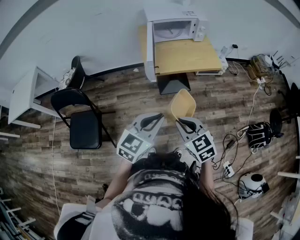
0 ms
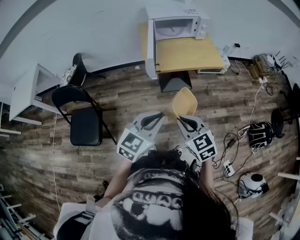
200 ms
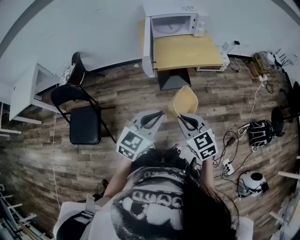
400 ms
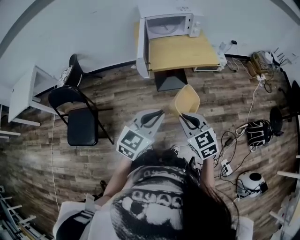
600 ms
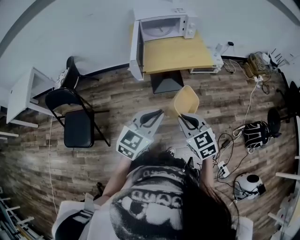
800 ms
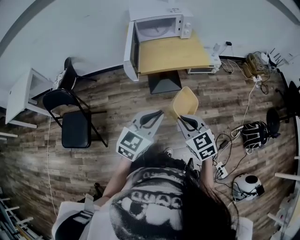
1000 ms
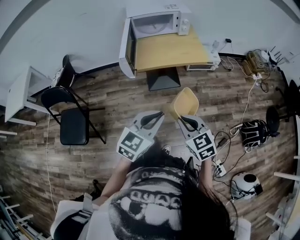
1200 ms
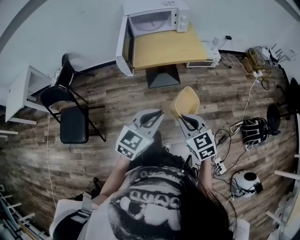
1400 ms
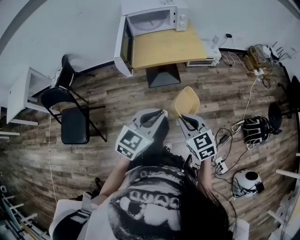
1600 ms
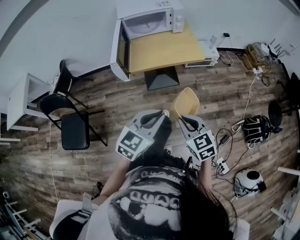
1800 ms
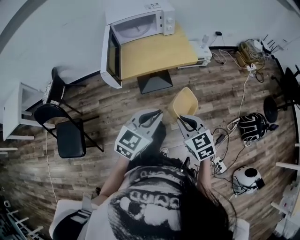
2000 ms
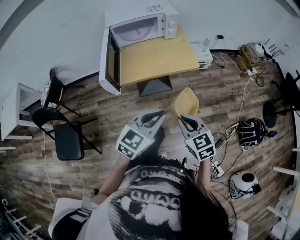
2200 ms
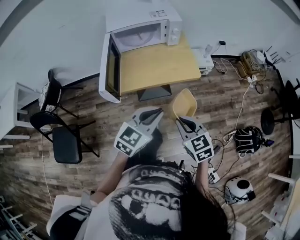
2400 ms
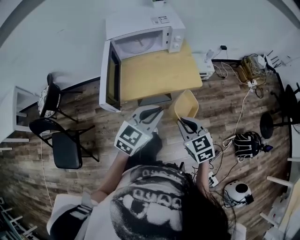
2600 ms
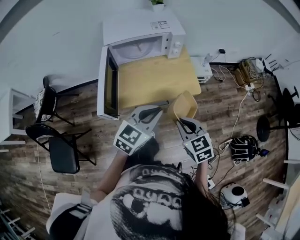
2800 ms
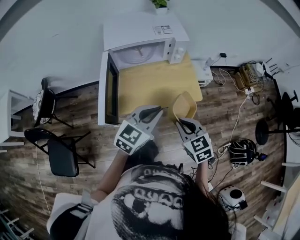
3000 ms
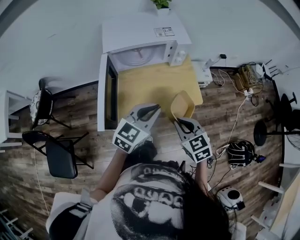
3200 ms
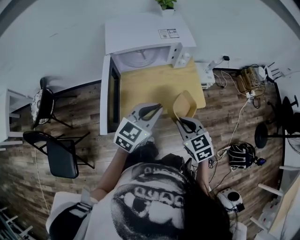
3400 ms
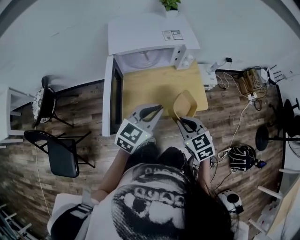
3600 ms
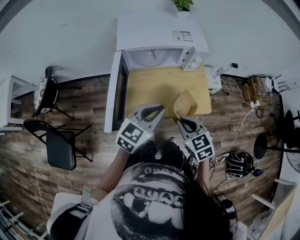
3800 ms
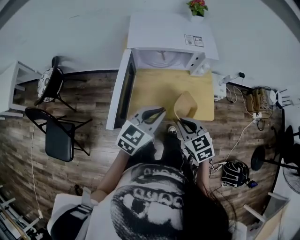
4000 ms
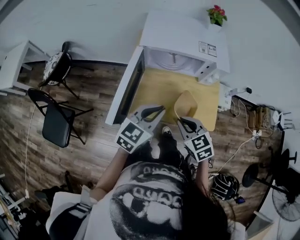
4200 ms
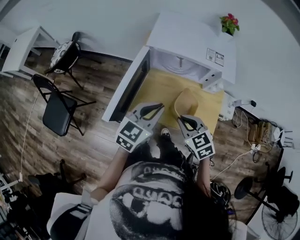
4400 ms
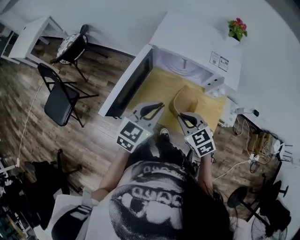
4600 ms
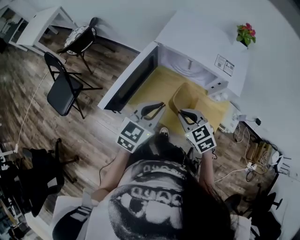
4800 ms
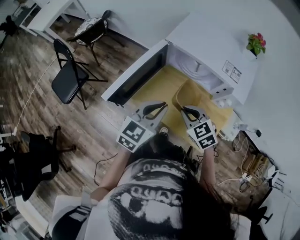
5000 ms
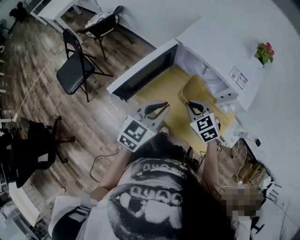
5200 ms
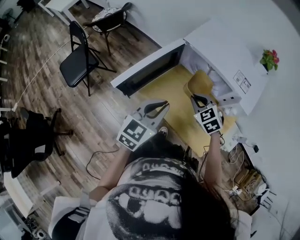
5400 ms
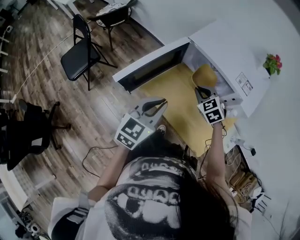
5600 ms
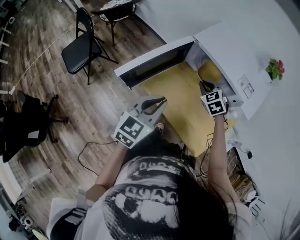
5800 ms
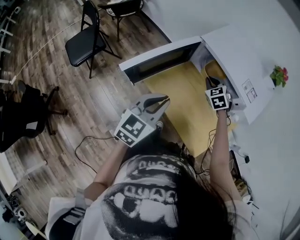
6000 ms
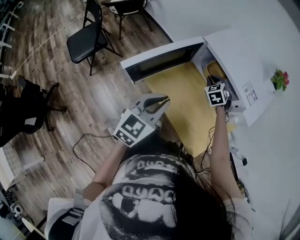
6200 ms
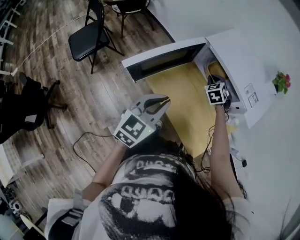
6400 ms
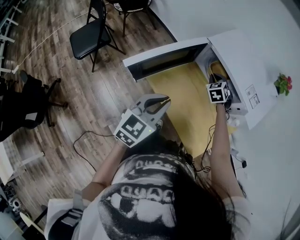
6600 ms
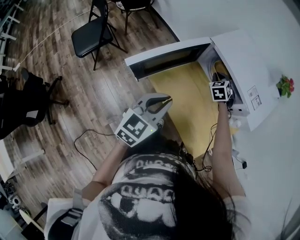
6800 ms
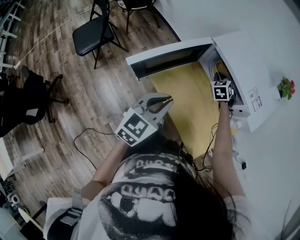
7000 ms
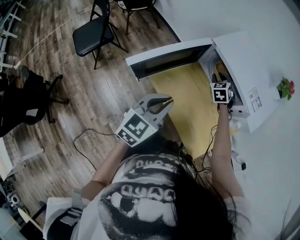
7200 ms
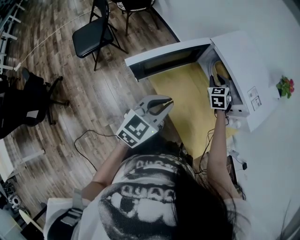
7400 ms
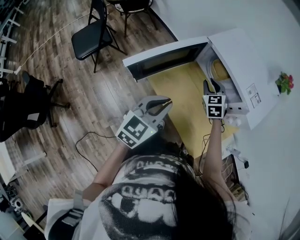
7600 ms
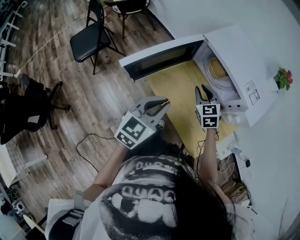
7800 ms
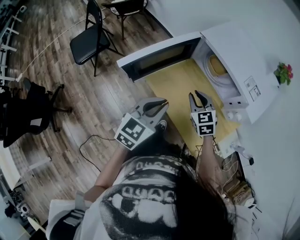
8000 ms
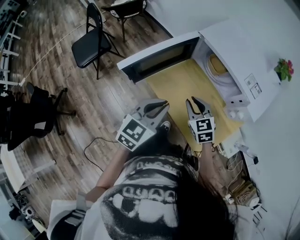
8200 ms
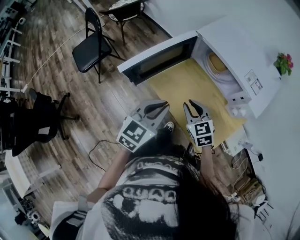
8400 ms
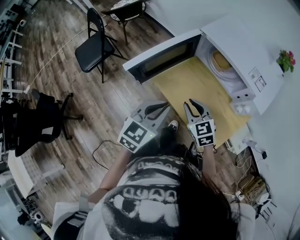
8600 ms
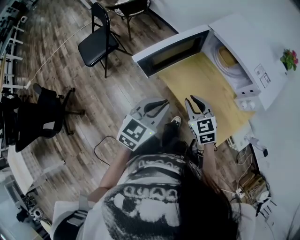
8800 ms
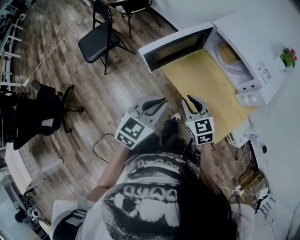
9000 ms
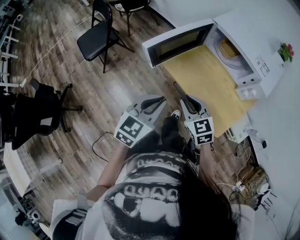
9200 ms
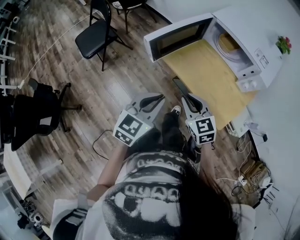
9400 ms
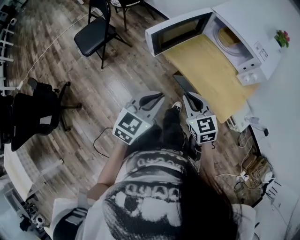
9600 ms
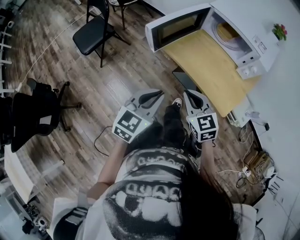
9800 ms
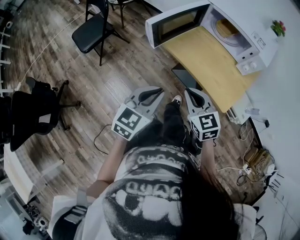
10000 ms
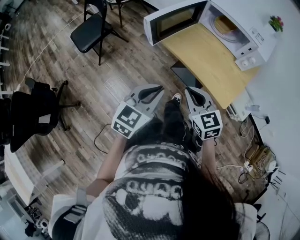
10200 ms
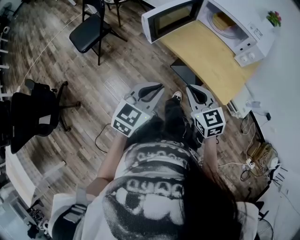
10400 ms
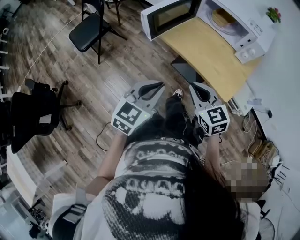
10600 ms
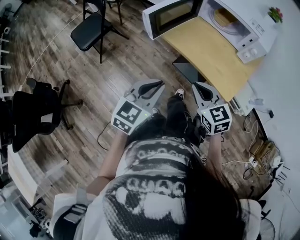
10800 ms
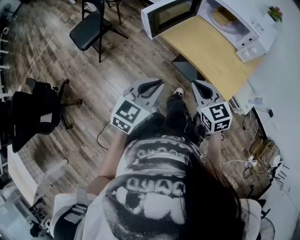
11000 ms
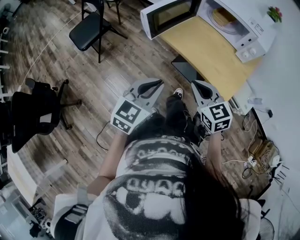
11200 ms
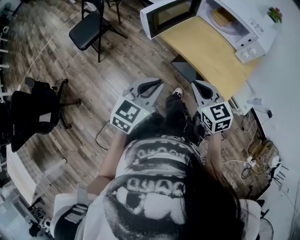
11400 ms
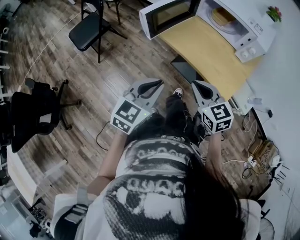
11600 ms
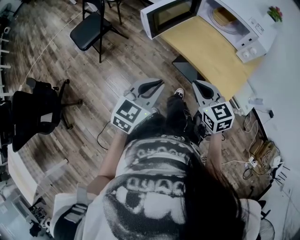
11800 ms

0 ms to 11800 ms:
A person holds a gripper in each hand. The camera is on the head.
0 ms to 1400 ms: The two grippers go approximately 15 cm to the right.
1400 ms to 3000 ms: Both grippers travel together forward, approximately 35 cm.
3000 ms to 4400 ms: The right gripper changes place by roughly 15 cm, and rotates about 30 degrees. Meanwhile the left gripper shifts by about 15 cm, and turns by approximately 30 degrees.
4400 ms to 6000 ms: The left gripper shifts by about 5 cm, and changes its angle by some 30 degrees. Meanwhile the right gripper shifts about 20 cm forward, and changes its angle by roughly 30 degrees.
7400 ms to 8800 ms: The left gripper heads backward, covering about 5 cm; the right gripper goes some 25 cm backward and to the left, and swivels some 30 degrees.
8800 ms to 10400 ms: The grippers both shift backward by roughly 20 cm.
10400 ms to 11800 ms: The grippers make only small movements.

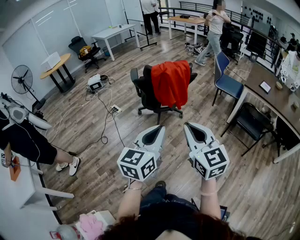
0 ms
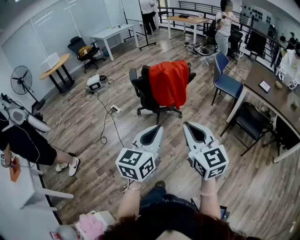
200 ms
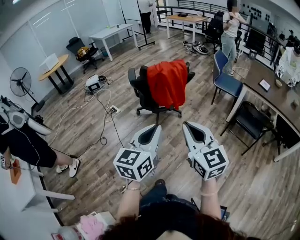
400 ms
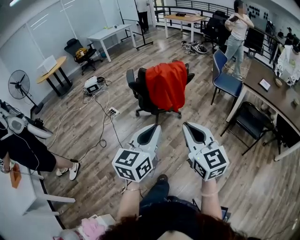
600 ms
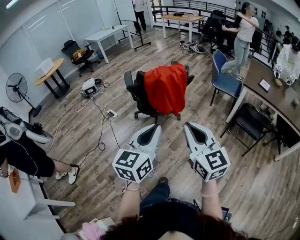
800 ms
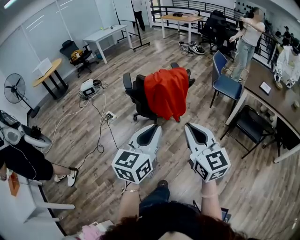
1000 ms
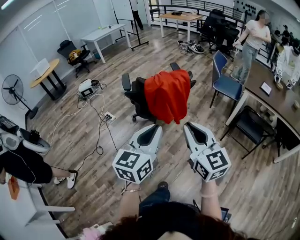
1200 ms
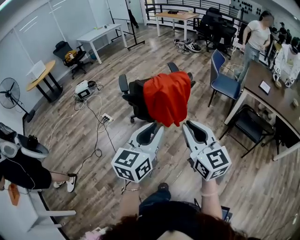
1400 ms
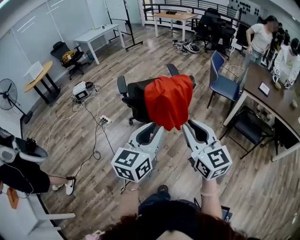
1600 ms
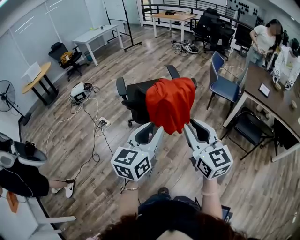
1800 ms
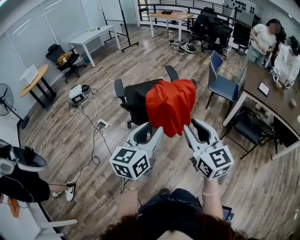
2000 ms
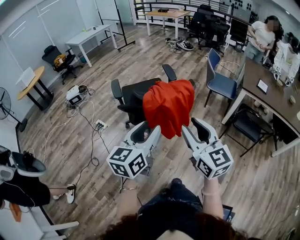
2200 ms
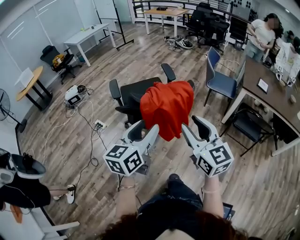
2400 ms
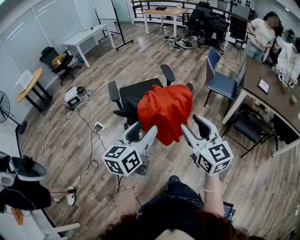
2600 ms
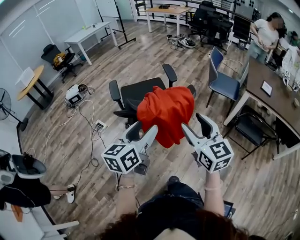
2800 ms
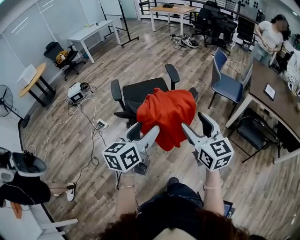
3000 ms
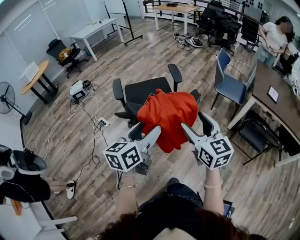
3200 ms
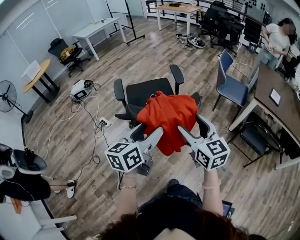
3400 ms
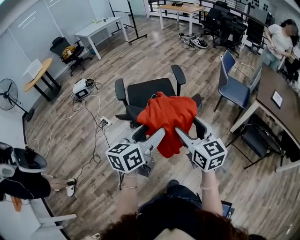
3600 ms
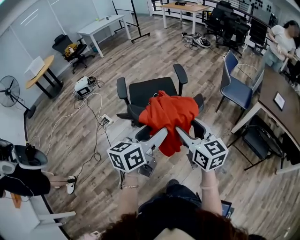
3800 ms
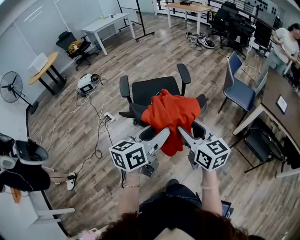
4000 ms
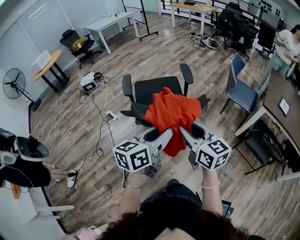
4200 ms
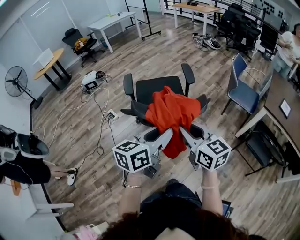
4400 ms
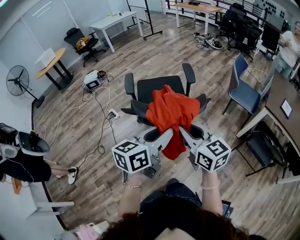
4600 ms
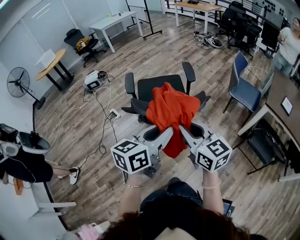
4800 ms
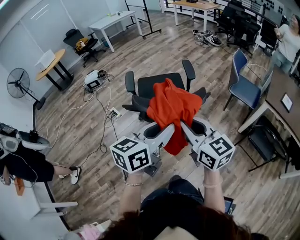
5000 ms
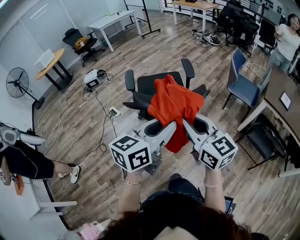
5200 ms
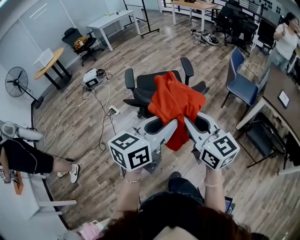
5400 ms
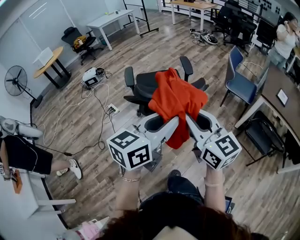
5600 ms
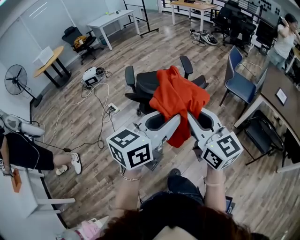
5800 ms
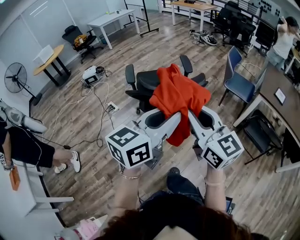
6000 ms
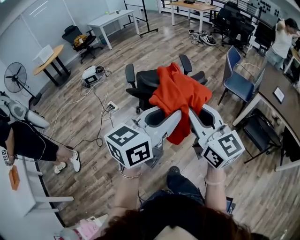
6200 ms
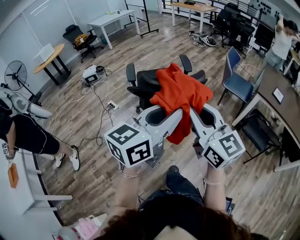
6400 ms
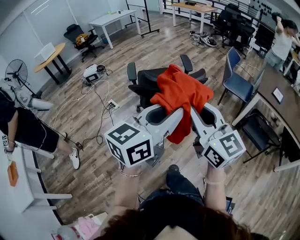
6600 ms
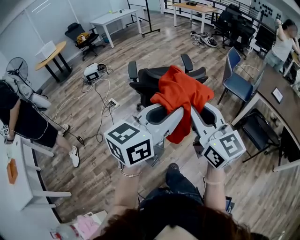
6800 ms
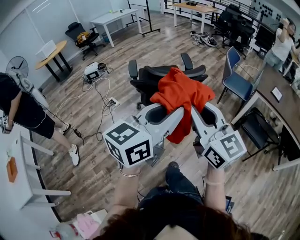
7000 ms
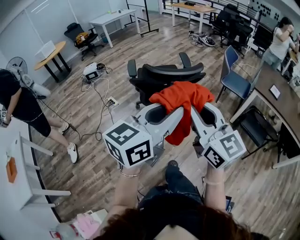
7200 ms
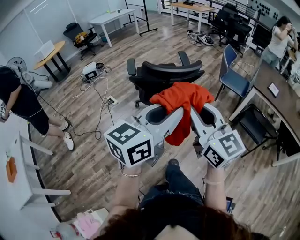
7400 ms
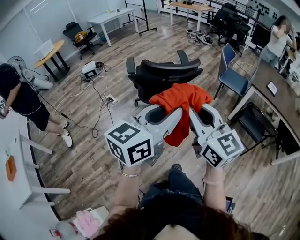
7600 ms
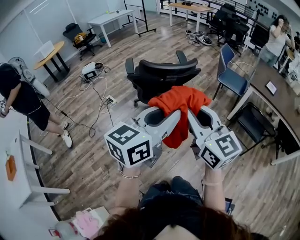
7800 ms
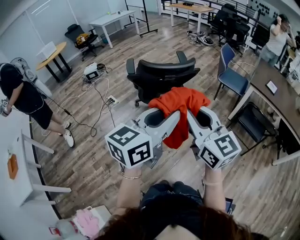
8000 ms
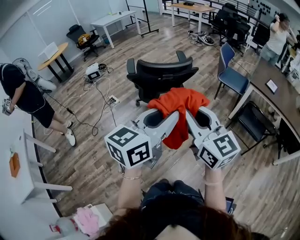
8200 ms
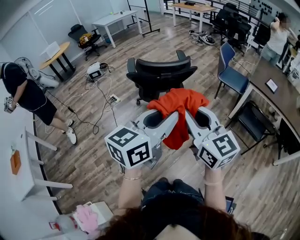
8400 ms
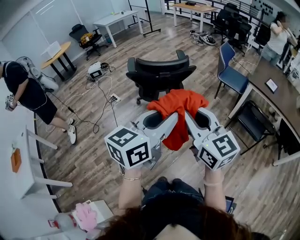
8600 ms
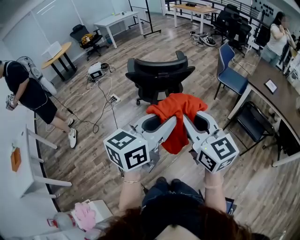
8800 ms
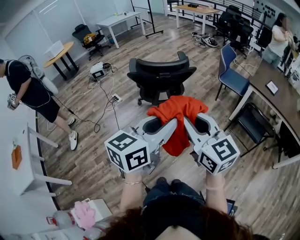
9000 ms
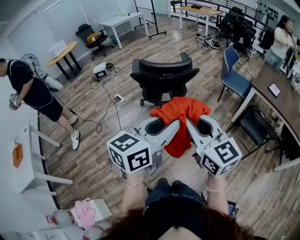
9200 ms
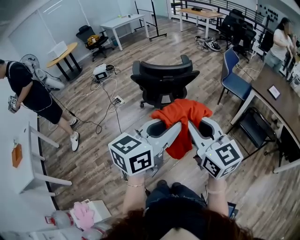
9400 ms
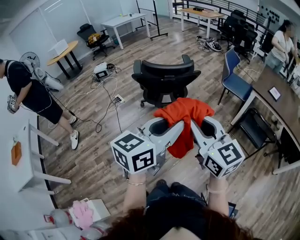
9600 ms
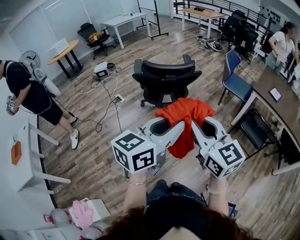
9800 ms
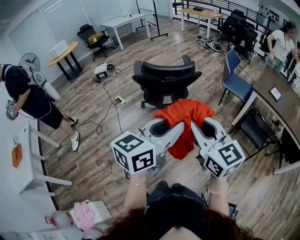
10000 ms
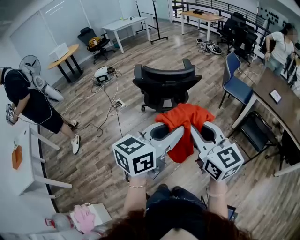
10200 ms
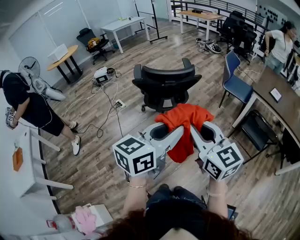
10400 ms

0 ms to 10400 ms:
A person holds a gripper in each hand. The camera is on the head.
0 ms to 1400 ms: The grippers both shift forward by approximately 15 cm.
1400 ms to 3000 ms: Both grippers move forward, roughly 20 cm. The left gripper opens, while the right gripper opens its fingers.
3000 ms to 4400 ms: The right gripper shifts by roughly 5 cm, rotates about 20 degrees, and closes. Meanwhile the left gripper goes approximately 5 cm to the right, and closes.
4400 ms to 6000 ms: Both grippers move backward and upward, roughly 15 cm.
6000 ms to 7400 ms: Both grippers travel together backward, approximately 10 cm.
7400 ms to 9000 ms: The two grippers go some 10 cm backward and to the right.
9000 ms to 10400 ms: Both grippers stay put.

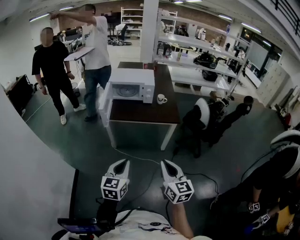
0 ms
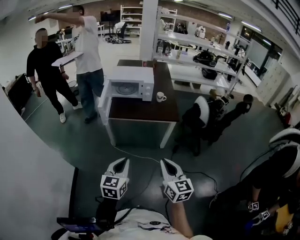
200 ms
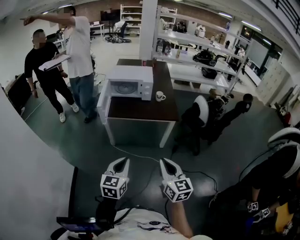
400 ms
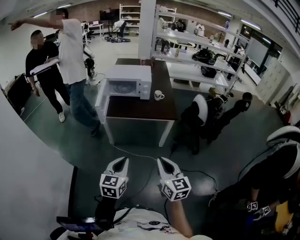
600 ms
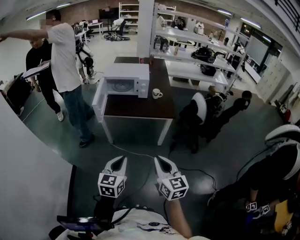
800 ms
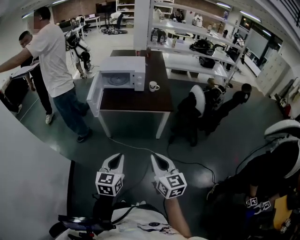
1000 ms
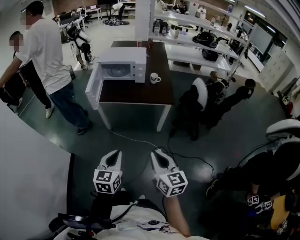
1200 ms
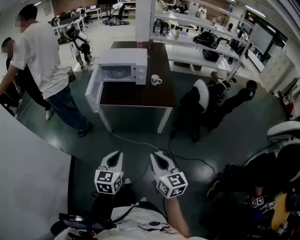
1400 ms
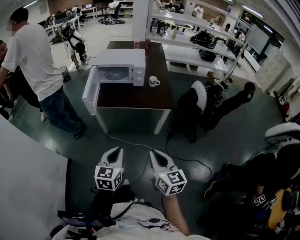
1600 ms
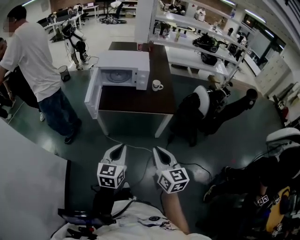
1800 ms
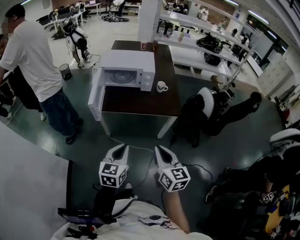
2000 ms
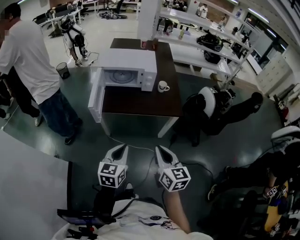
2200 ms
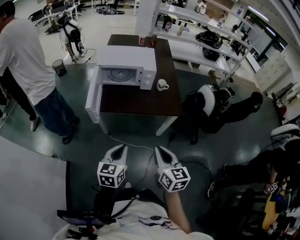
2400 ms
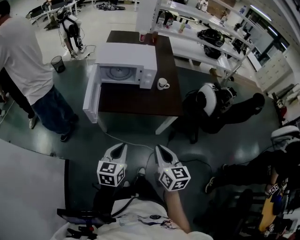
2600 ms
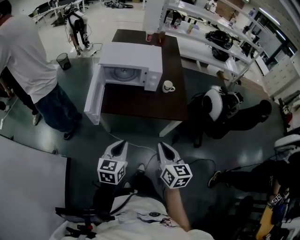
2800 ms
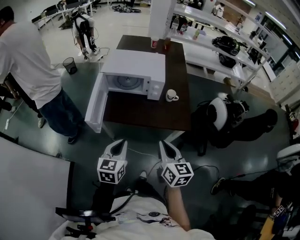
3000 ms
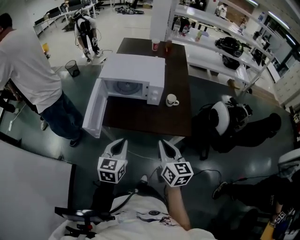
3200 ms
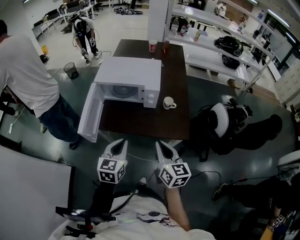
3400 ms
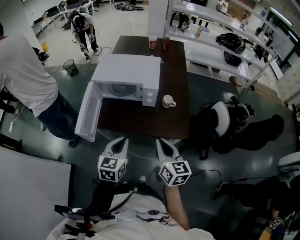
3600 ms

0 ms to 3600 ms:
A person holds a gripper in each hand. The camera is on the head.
0 ms to 1800 ms: The grippers both shift forward by some 10 cm.
1800 ms to 3600 ms: The two grippers go some 30 cm forward.
